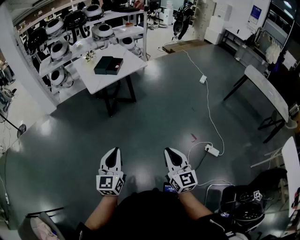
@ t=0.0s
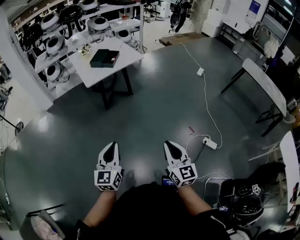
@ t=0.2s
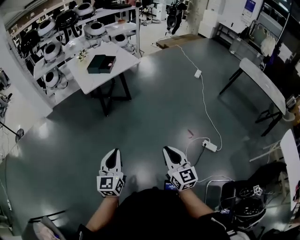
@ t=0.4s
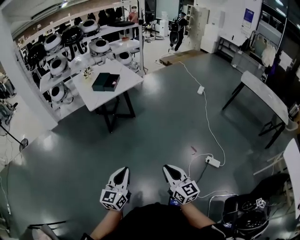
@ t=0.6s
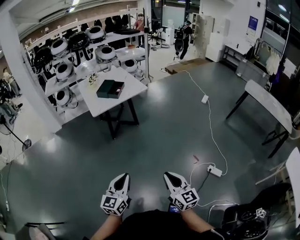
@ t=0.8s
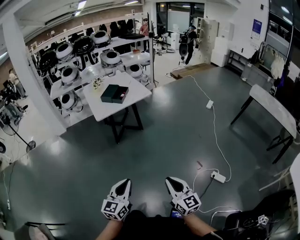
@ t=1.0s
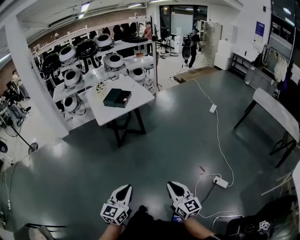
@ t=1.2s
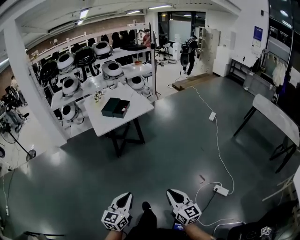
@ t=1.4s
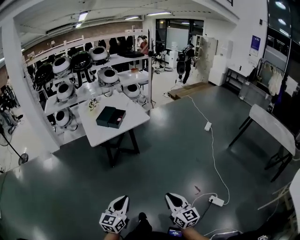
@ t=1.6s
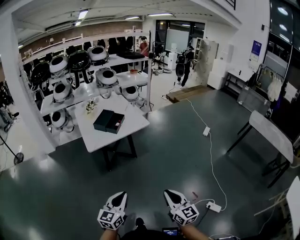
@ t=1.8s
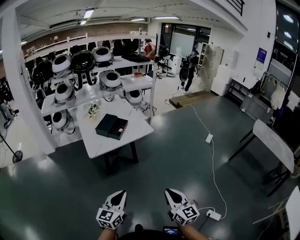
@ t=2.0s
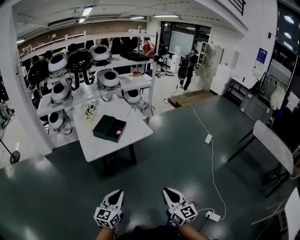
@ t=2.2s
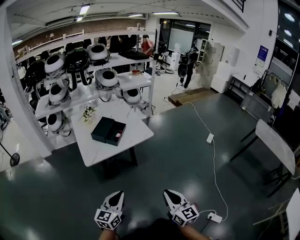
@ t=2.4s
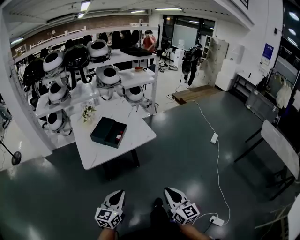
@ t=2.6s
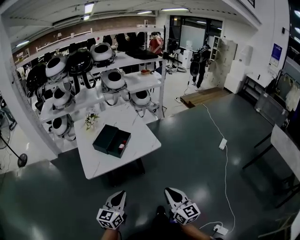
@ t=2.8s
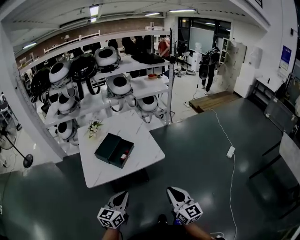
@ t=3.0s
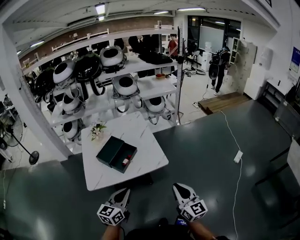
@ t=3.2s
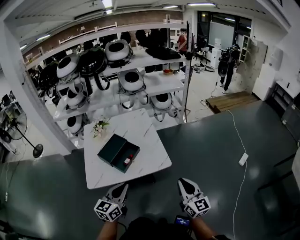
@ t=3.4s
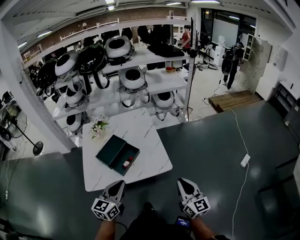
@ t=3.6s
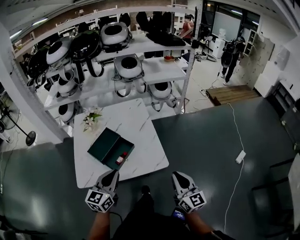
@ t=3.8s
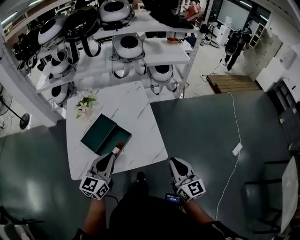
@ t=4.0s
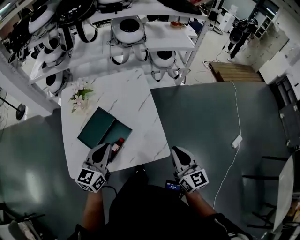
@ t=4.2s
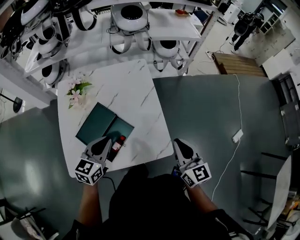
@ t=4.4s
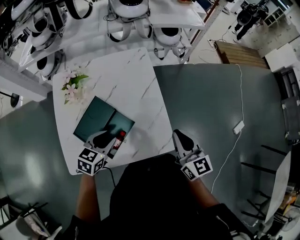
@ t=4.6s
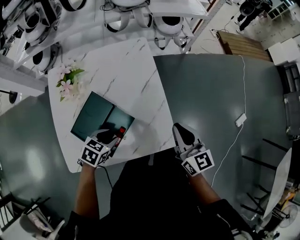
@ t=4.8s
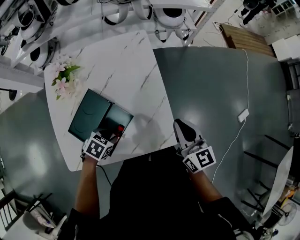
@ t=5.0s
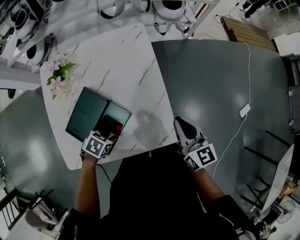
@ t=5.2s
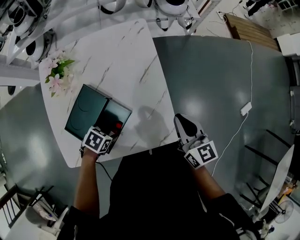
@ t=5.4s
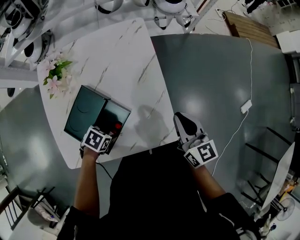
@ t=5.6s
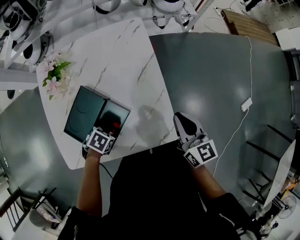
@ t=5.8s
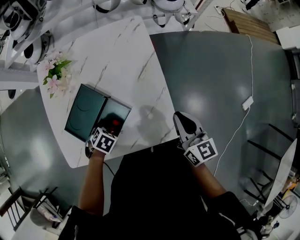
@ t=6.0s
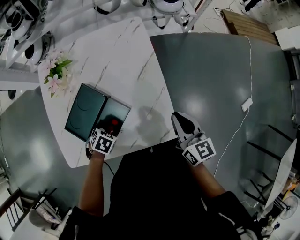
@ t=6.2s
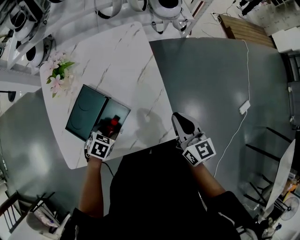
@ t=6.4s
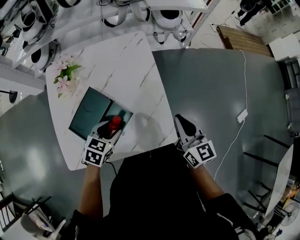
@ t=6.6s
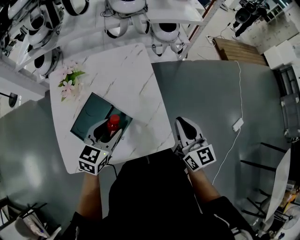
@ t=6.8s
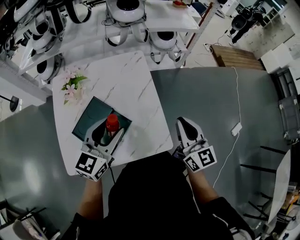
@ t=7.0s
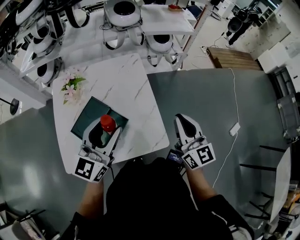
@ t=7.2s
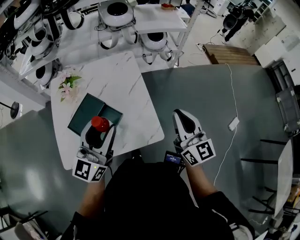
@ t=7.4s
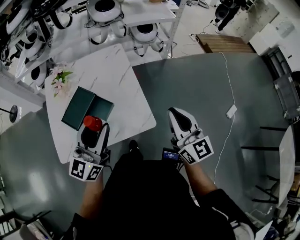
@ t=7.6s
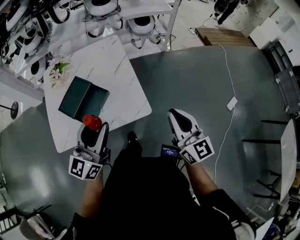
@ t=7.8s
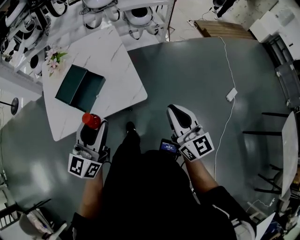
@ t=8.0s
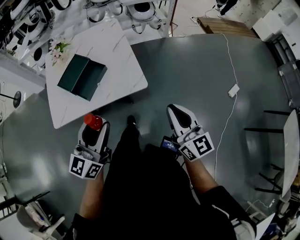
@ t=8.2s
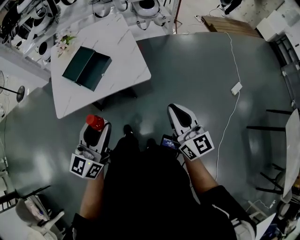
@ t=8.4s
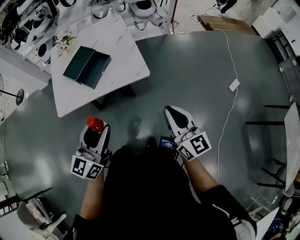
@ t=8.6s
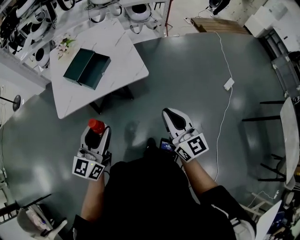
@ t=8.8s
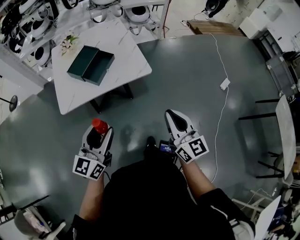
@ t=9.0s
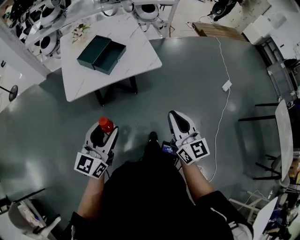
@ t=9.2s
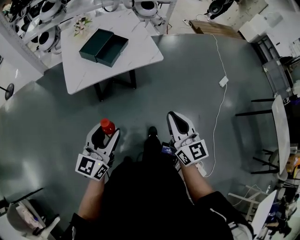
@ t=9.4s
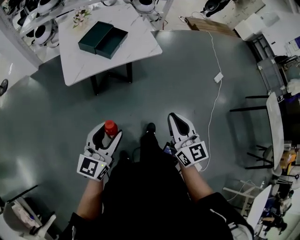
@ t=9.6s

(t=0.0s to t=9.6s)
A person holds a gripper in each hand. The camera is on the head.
t=0.0s - t=1.6s: The right gripper travels forward by some 15 cm. Meanwhile the left gripper shifts roughly 15 cm forward and to the right.
t=1.6s - t=3.2s: The pair of grippers is taken forward, approximately 60 cm.
t=3.2s - t=4.8s: The right gripper is displaced forward by some 35 cm. The left gripper shifts roughly 40 cm forward and downward, tips its fingers downward by some 50 degrees, and opens.
t=4.8s - t=6.4s: The left gripper moves downward, approximately 10 cm; the right gripper shifts by approximately 5 cm.
t=6.4s - t=8.0s: The left gripper heads upward, backward and to the right, covering approximately 40 cm, and points its fingers approximately 80 degrees further upward. The right gripper shifts some 30 cm backward, to the right and upward, and swivels about 20 degrees.
t=8.0s - t=9.6s: The left gripper moves backward, approximately 35 cm; the right gripper goes some 40 cm backward and to the left.

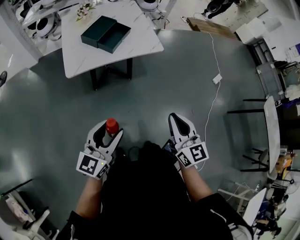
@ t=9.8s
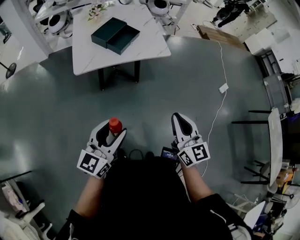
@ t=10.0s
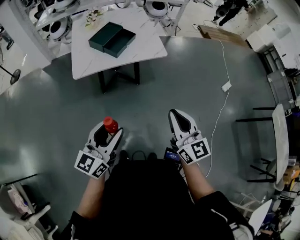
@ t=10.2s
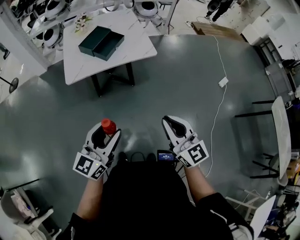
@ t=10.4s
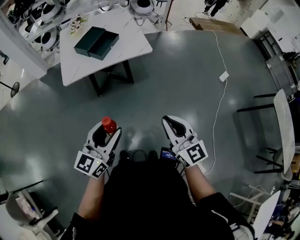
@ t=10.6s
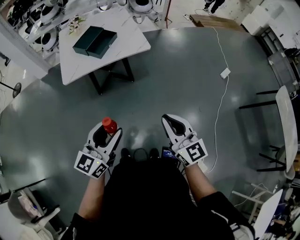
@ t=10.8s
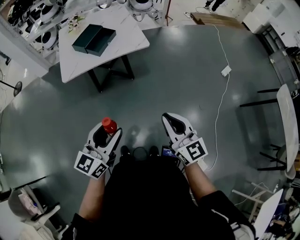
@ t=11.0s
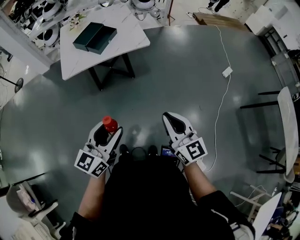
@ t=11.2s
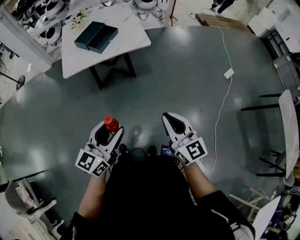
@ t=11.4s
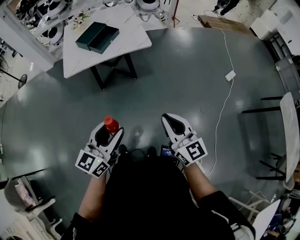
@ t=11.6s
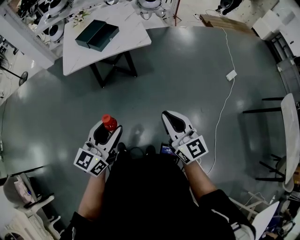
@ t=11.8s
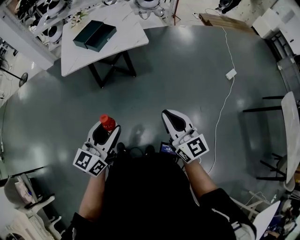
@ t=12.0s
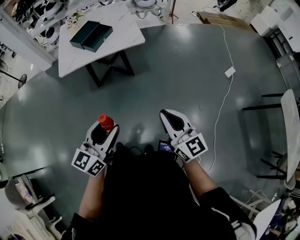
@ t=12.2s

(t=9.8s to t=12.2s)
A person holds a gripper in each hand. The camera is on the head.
t=9.8s - t=11.0s: The grippers both shift to the right by roughly 10 cm.
t=11.0s - t=12.2s: The grippers both shift to the right by approximately 5 cm.

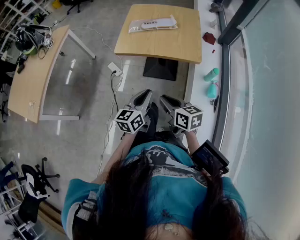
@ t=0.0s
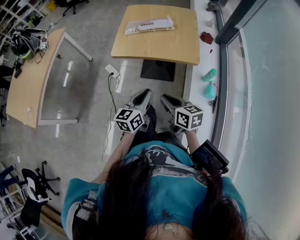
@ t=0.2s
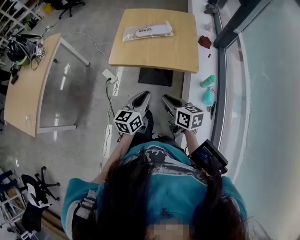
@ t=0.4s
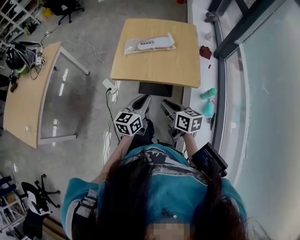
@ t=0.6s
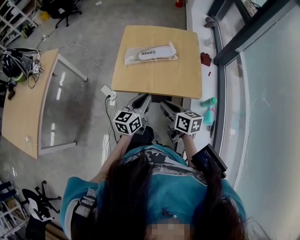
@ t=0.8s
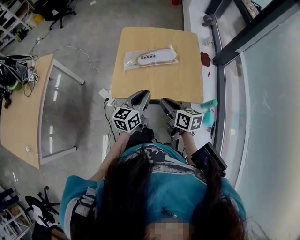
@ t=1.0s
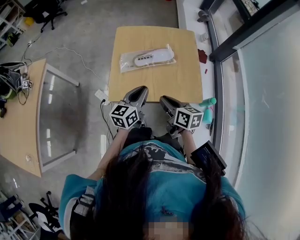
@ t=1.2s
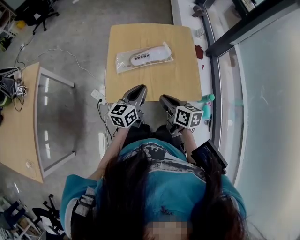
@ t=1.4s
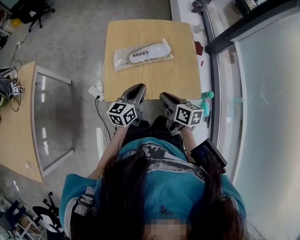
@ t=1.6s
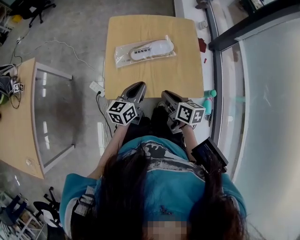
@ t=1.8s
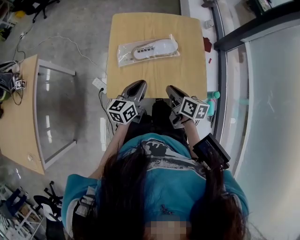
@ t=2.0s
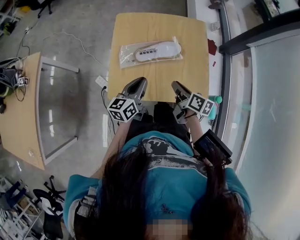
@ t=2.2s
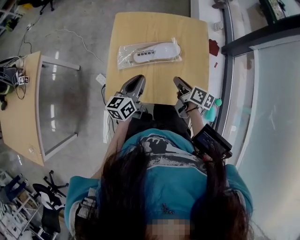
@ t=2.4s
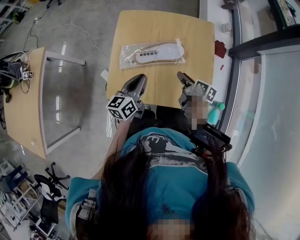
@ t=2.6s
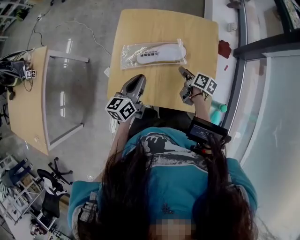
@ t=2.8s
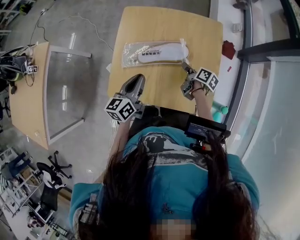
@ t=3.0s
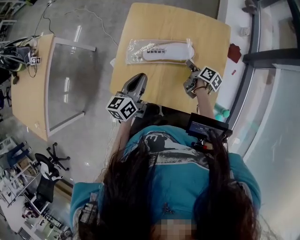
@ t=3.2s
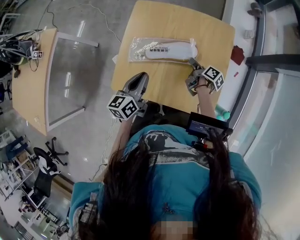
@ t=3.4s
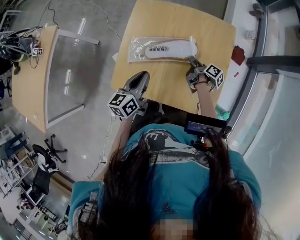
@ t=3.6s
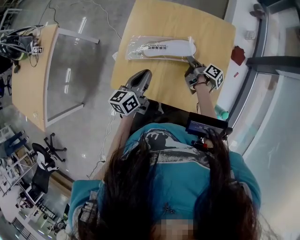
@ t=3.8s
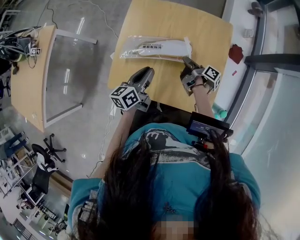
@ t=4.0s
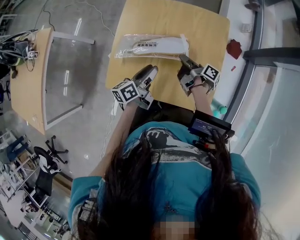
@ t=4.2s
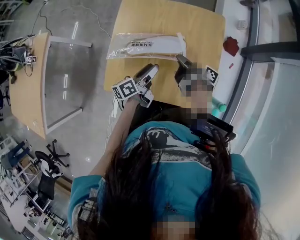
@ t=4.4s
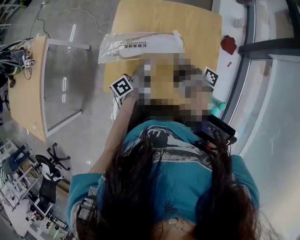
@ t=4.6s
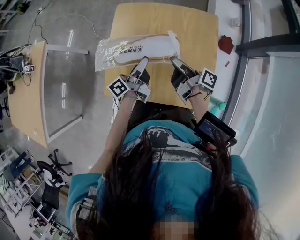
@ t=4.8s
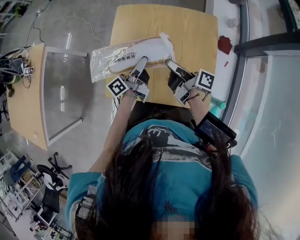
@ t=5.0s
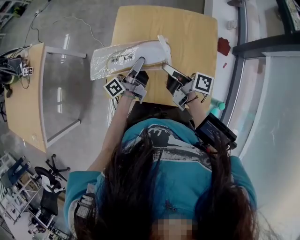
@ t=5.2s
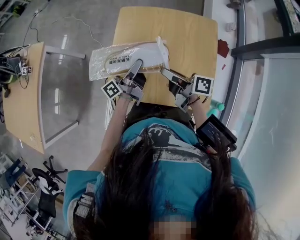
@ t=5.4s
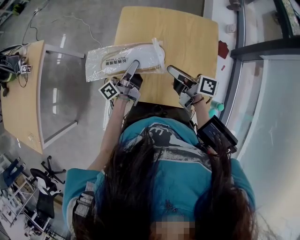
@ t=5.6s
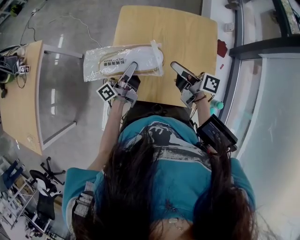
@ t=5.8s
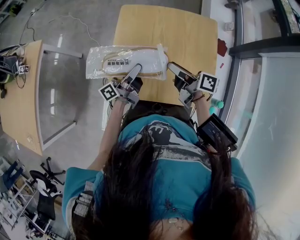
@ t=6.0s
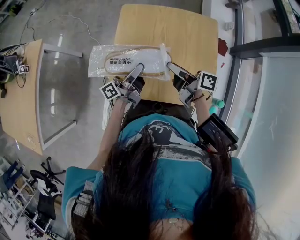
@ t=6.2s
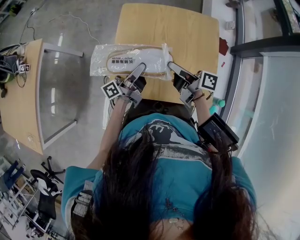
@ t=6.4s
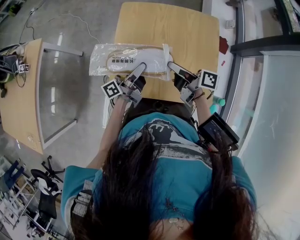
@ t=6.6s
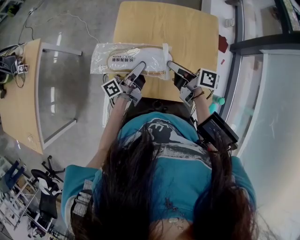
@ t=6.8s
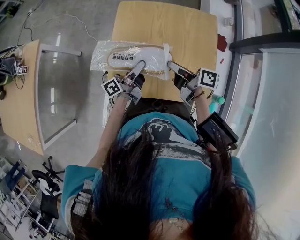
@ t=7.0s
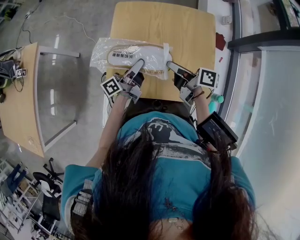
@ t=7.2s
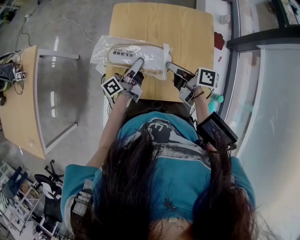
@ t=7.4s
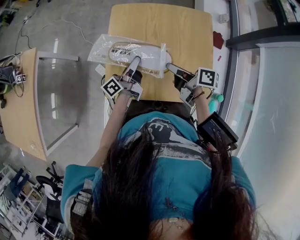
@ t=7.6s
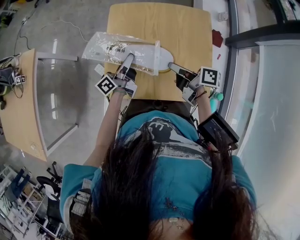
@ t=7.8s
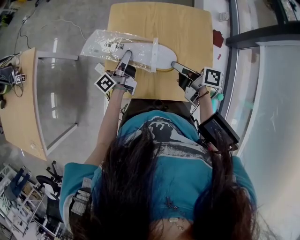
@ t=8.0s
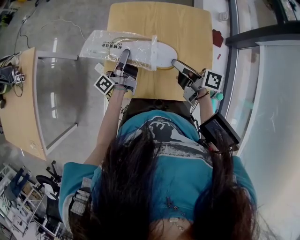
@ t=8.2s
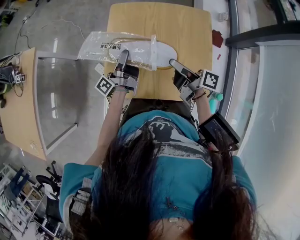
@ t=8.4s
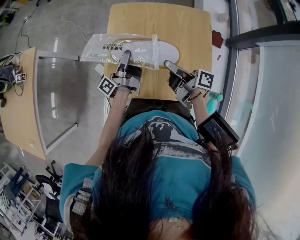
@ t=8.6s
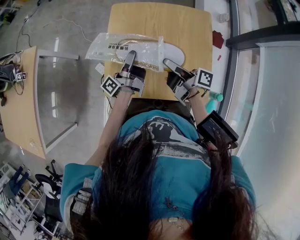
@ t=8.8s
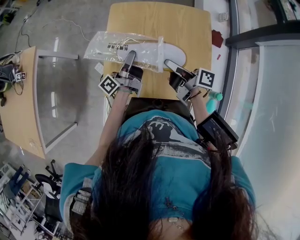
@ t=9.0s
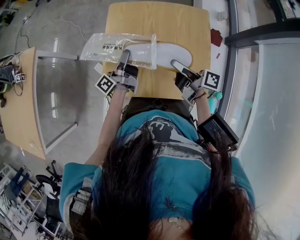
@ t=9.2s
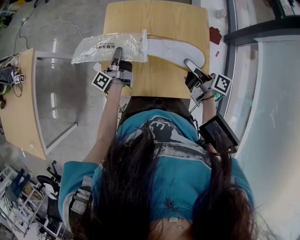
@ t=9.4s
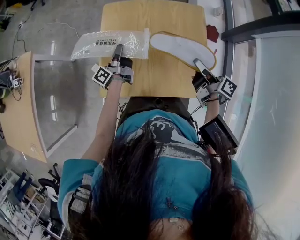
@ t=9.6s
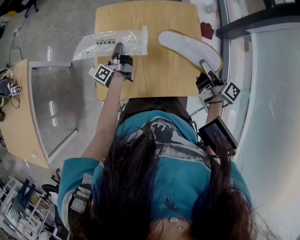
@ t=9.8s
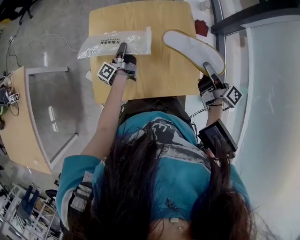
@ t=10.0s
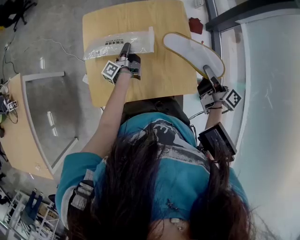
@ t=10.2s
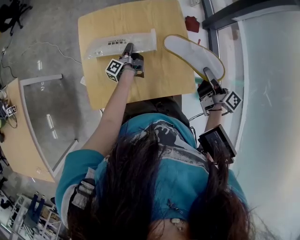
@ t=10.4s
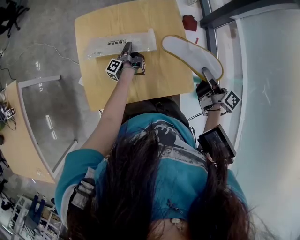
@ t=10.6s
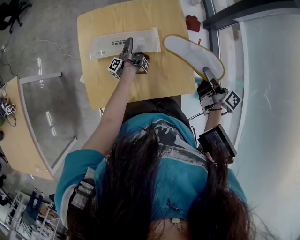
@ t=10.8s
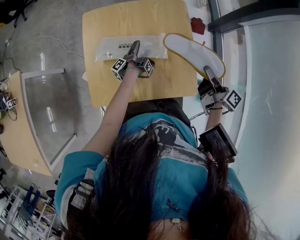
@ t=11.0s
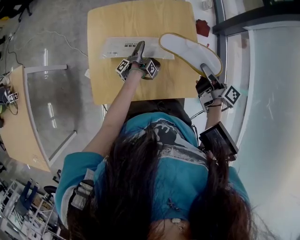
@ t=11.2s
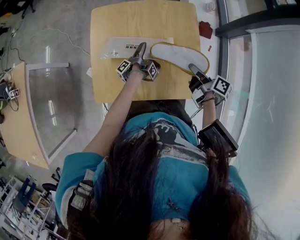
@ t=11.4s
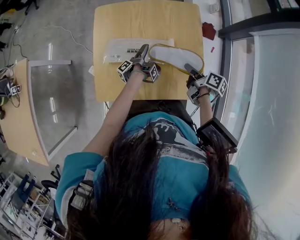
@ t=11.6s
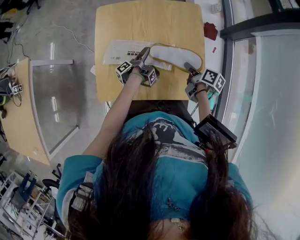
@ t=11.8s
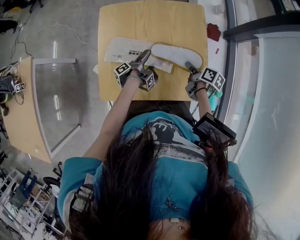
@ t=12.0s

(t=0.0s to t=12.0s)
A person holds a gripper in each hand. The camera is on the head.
t=0.0s - t=1.6s: The left gripper moves approximately 40 cm.
t=1.6s - t=3.0s: The left gripper moves approximately 10 cm.
t=3.0s - t=4.4s: The left gripper moves roughly 10 cm, turns by roughly 30 degrees, and opens up.
t=4.4s - t=6.0s: The left gripper shifts by some 10 cm, and swivels about 30 degrees.
t=9.0s - t=10.4s: The left gripper is displaced downward by roughly 15 cm, and rotates some 30 degrees.
t=10.4s - t=12.0s: The left gripper shifts by some 10 cm, rotates roughly 30 degrees, and opens.
